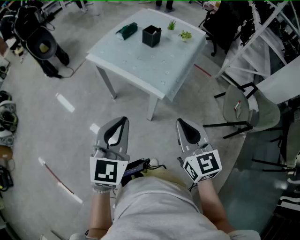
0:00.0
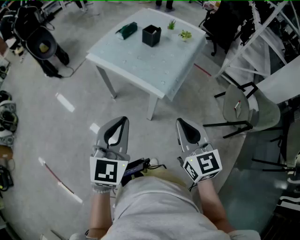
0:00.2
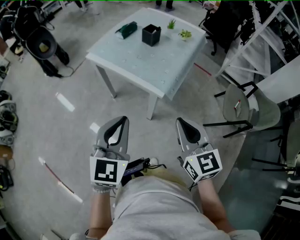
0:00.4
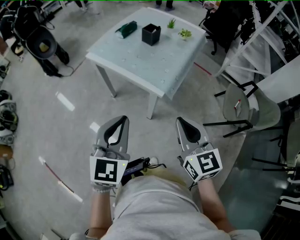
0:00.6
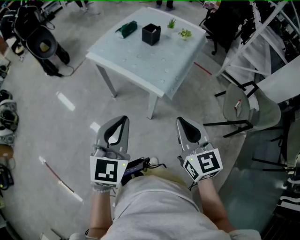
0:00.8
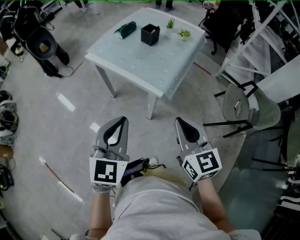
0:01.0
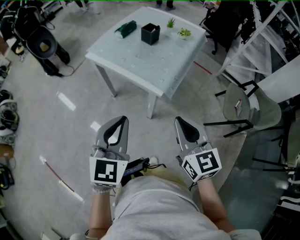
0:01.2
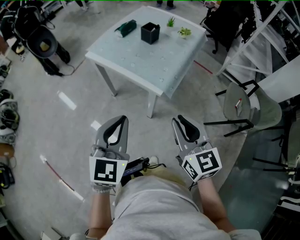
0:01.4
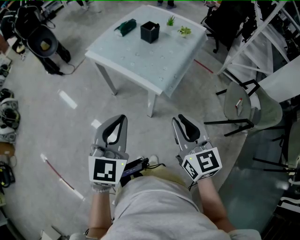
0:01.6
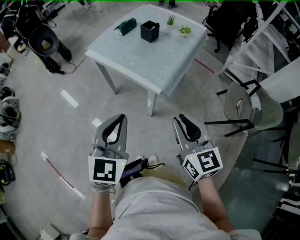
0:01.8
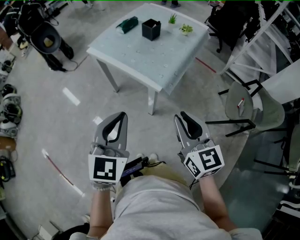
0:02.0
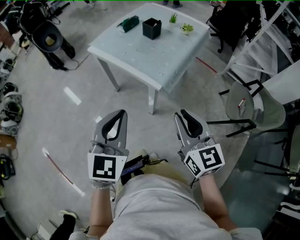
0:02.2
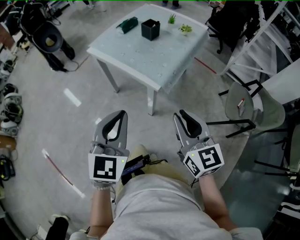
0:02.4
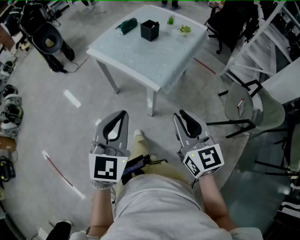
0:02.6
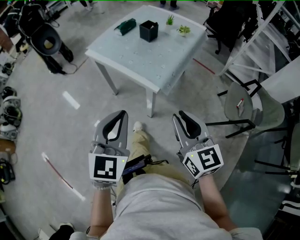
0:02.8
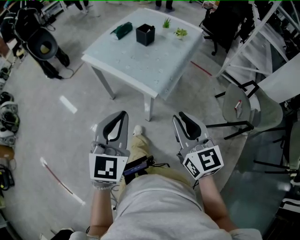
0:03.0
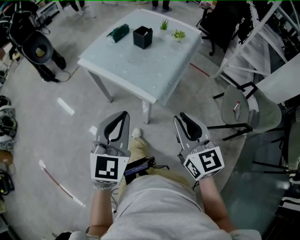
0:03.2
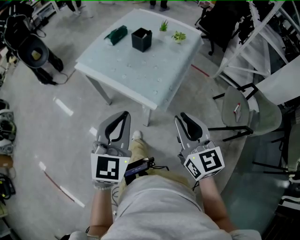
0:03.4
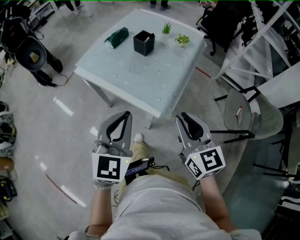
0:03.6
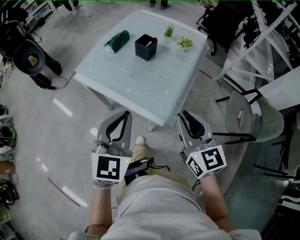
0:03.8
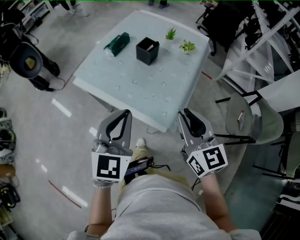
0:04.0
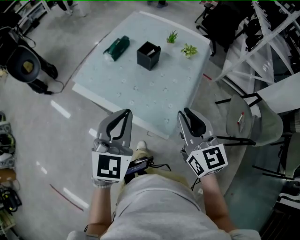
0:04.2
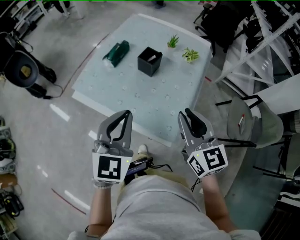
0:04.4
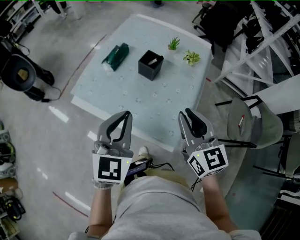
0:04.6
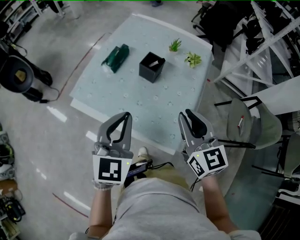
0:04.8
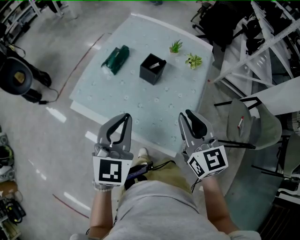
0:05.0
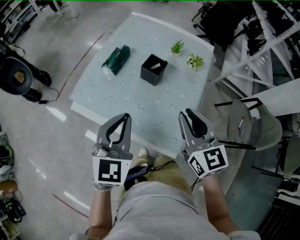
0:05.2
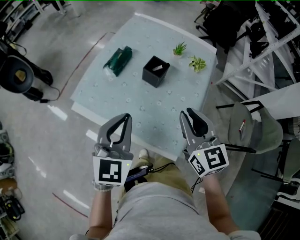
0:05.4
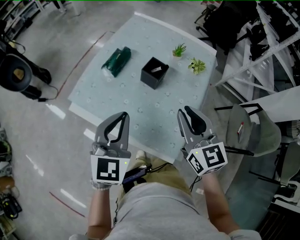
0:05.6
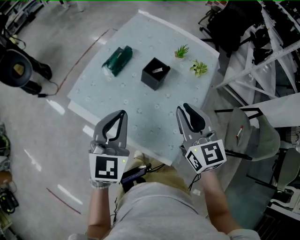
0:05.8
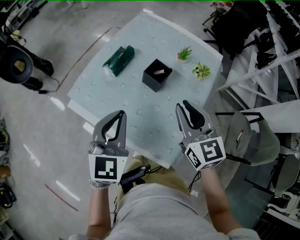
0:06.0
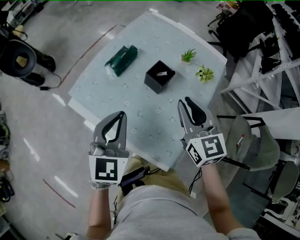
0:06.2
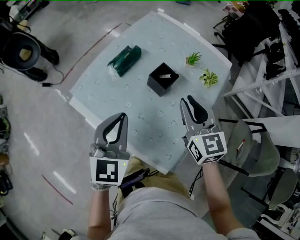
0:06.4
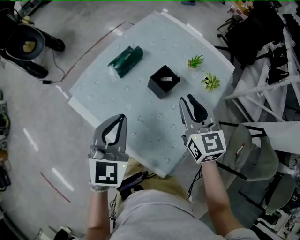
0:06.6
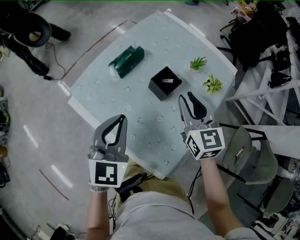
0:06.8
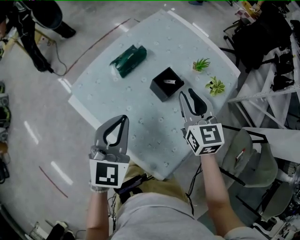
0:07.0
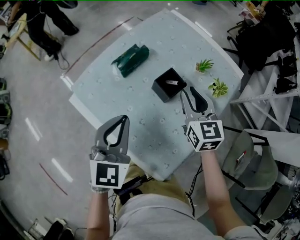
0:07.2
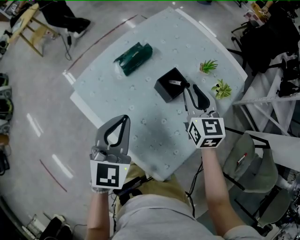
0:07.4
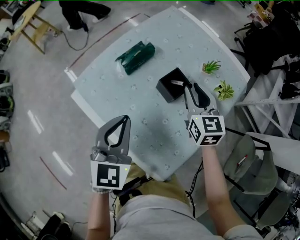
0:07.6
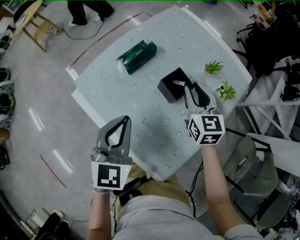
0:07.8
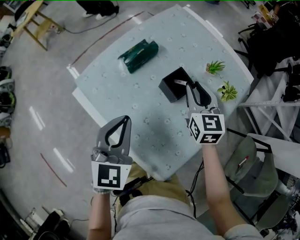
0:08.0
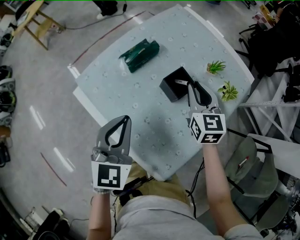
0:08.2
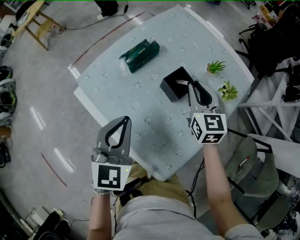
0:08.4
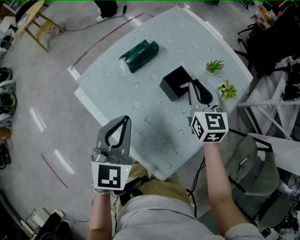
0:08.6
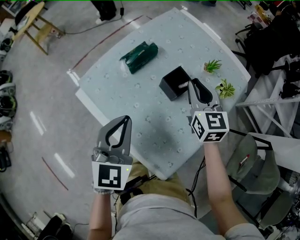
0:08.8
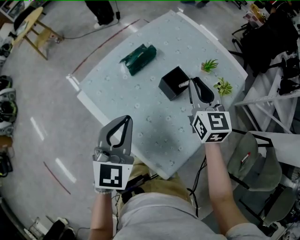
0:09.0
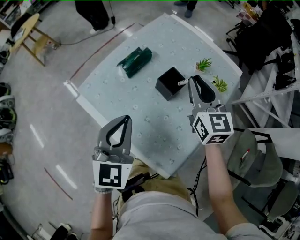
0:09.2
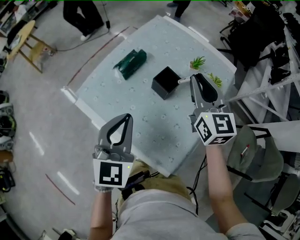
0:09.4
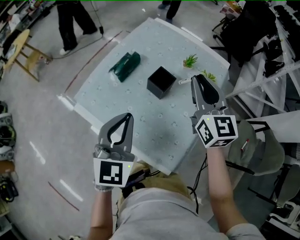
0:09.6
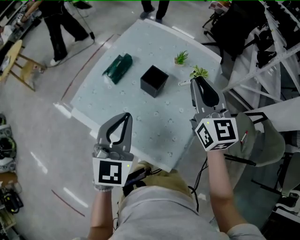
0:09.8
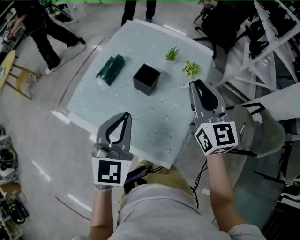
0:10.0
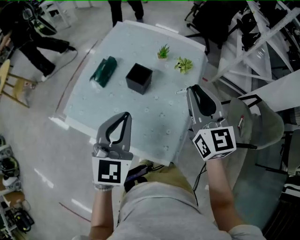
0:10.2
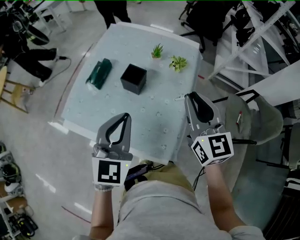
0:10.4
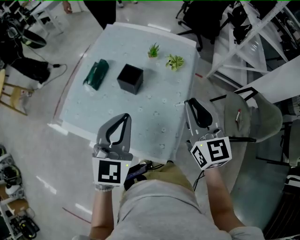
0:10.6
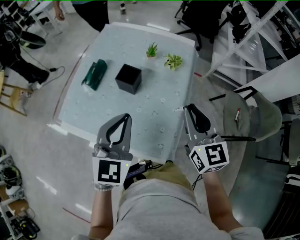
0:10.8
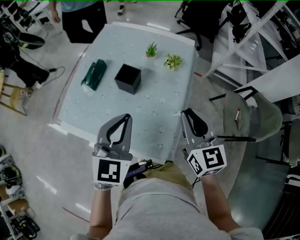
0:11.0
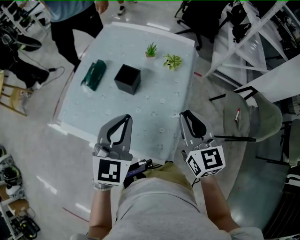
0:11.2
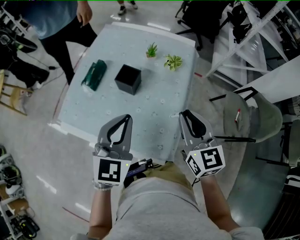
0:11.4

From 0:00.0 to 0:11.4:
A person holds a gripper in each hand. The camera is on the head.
From 0:00.0 to 0:02.8: The grippers make only small movements.
From 0:02.8 to 0:04.2: The grippers both shift forward by roughly 25 cm.
From 0:04.2 to 0:05.6: The grippers both shift forward by roughly 15 cm.
From 0:05.6 to 0:07.2: The right gripper heads forward and downward, covering about 20 cm; the left gripper travels forward by about 5 cm.
From 0:07.2 to 0:08.6: The grippers stay close to where they were, moving slightly.
From 0:08.6 to 0:10.0: The right gripper heads upward, backward and to the right, covering approximately 20 cm, and turns by approximately 20 degrees. Meanwhile the left gripper goes some 10 cm upward and to the right, and turns by approximately 20 degrees.
From 0:10.0 to 0:11.4: The right gripper goes roughly 10 cm backward and downward. Meanwhile the left gripper goes some 5 cm to the right.

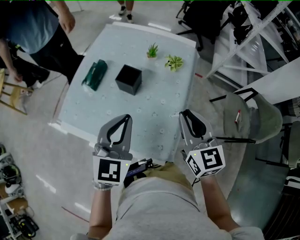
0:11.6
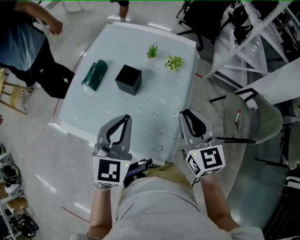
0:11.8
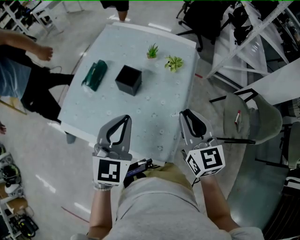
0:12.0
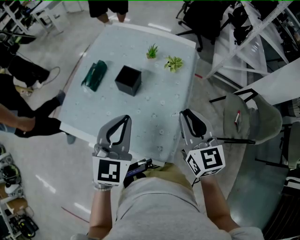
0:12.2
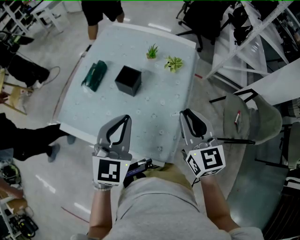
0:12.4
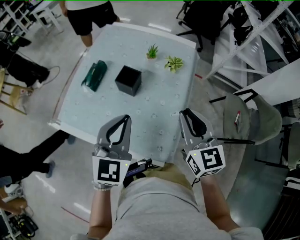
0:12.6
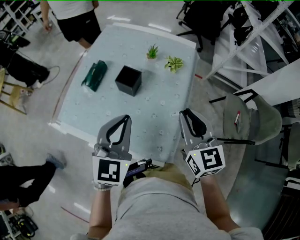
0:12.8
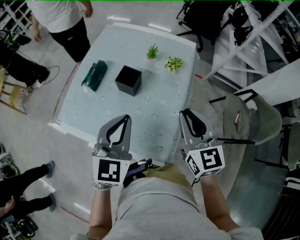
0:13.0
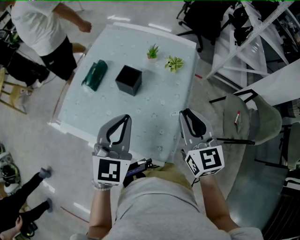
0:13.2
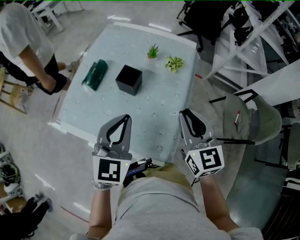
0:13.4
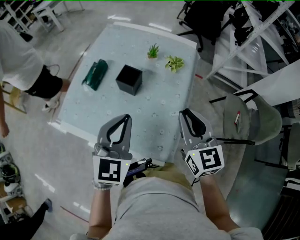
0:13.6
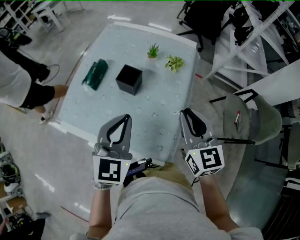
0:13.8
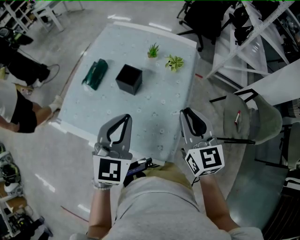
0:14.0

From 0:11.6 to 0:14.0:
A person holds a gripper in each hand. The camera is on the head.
From 0:11.6 to 0:14.0: Both grippers stay put.

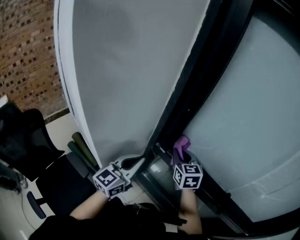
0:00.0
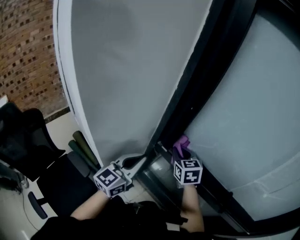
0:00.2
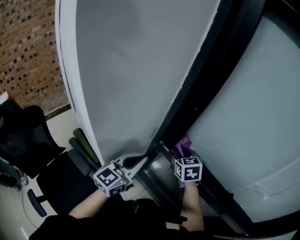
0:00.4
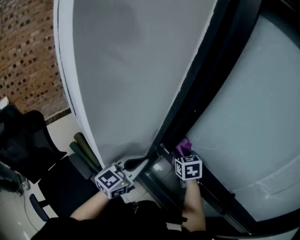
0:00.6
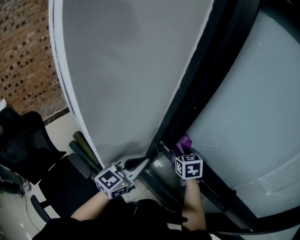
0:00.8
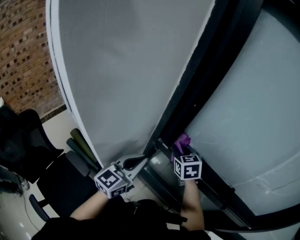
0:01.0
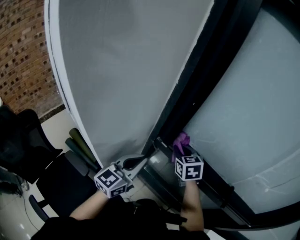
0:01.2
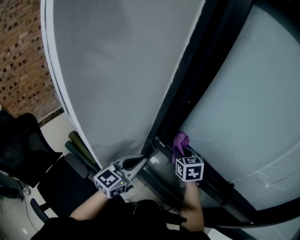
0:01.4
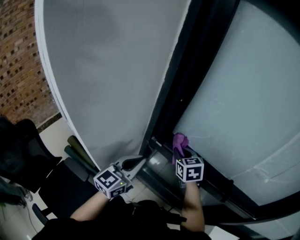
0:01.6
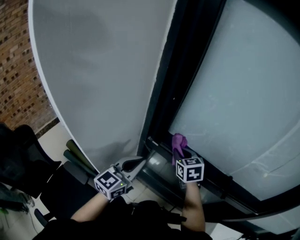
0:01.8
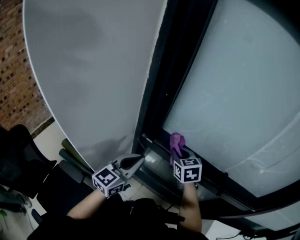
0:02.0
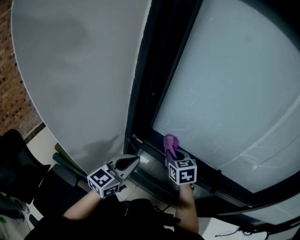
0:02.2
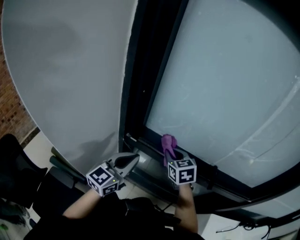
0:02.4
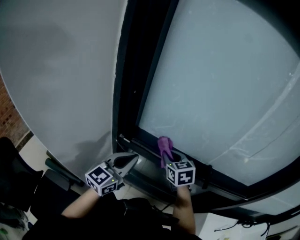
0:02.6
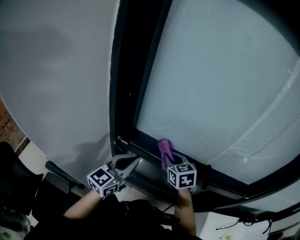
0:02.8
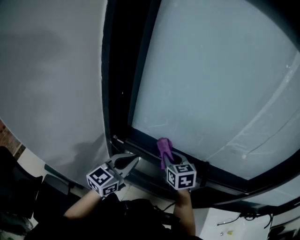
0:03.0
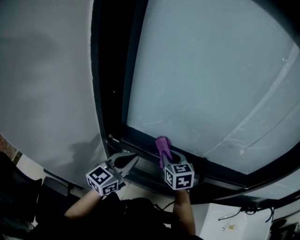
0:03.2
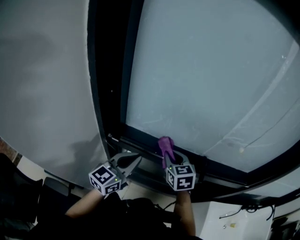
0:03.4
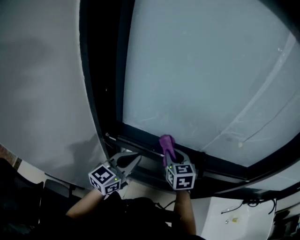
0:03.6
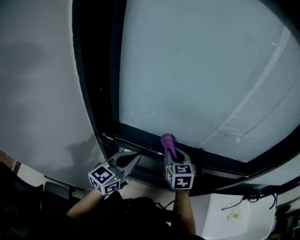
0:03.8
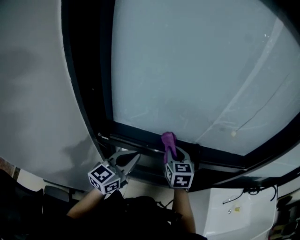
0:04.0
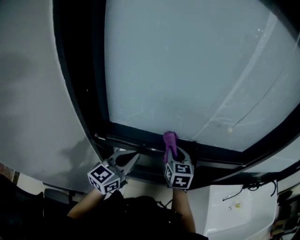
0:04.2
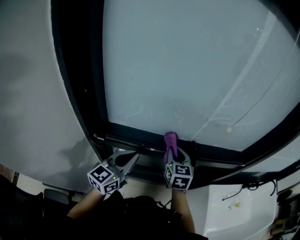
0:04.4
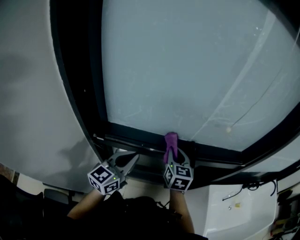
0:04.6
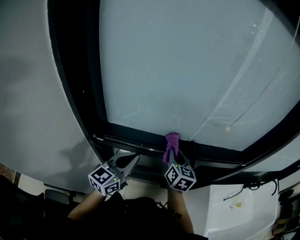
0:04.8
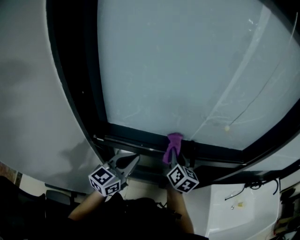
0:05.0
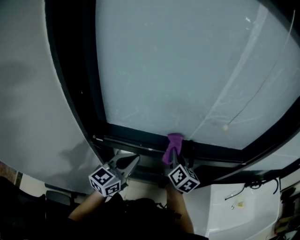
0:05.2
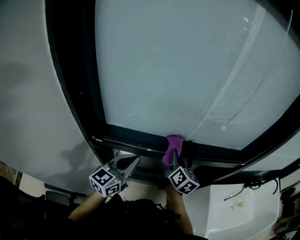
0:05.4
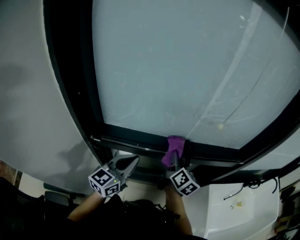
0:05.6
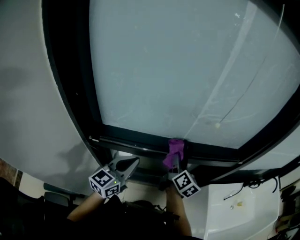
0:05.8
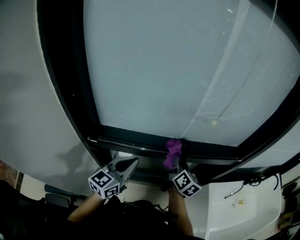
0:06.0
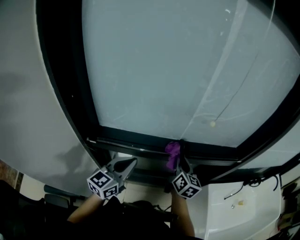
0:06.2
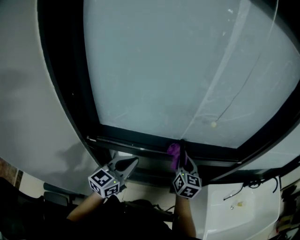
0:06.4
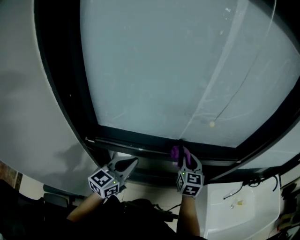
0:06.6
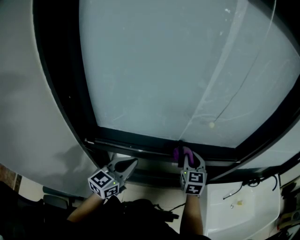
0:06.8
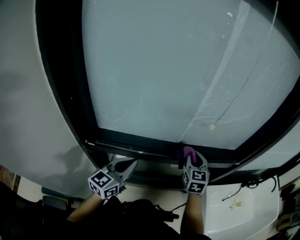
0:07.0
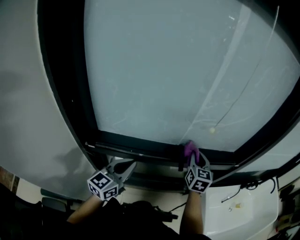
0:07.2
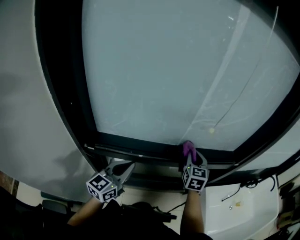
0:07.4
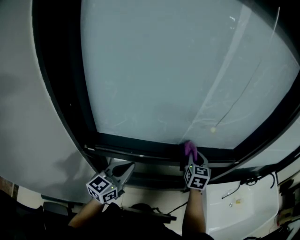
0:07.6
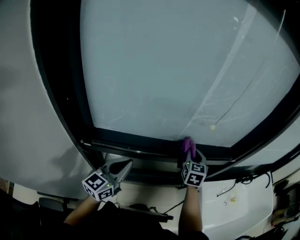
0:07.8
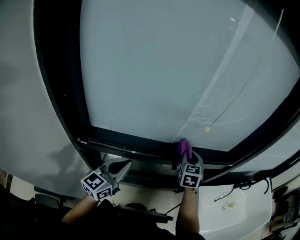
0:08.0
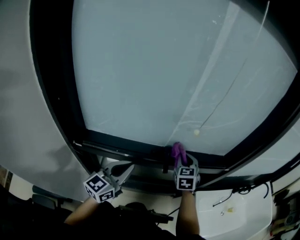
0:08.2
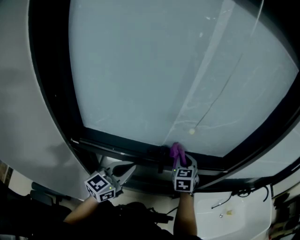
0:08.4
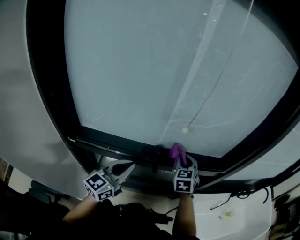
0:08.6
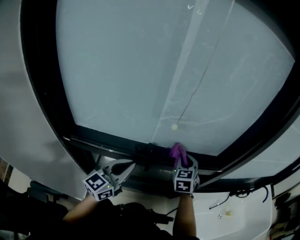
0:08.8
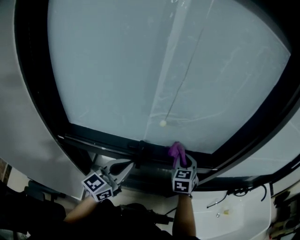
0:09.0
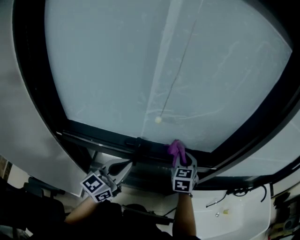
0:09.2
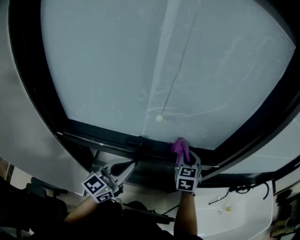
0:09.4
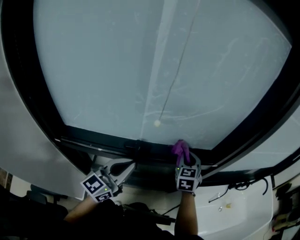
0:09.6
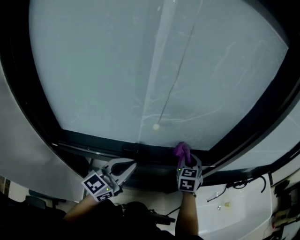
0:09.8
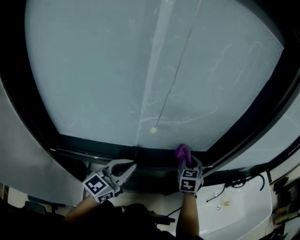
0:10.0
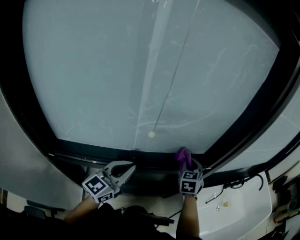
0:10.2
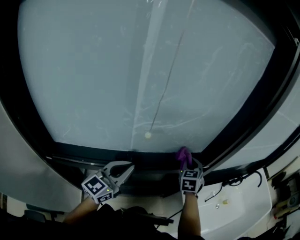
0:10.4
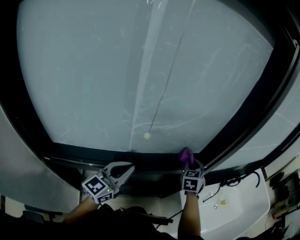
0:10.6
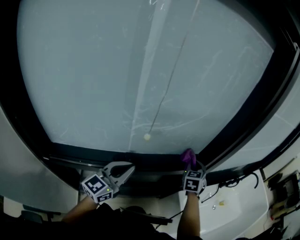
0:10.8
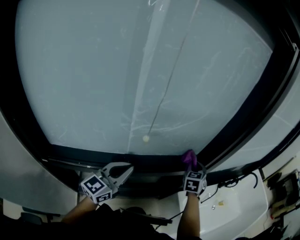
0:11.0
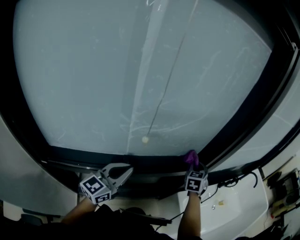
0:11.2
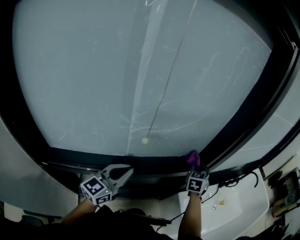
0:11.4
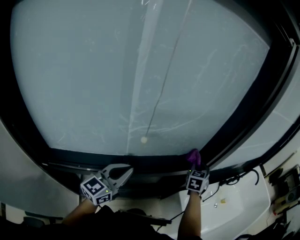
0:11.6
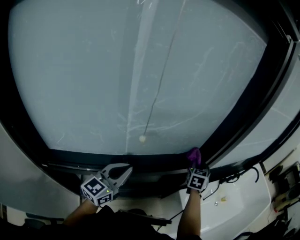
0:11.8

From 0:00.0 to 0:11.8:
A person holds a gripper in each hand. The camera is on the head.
From 0:00.0 to 0:01.4: There are only small adjustments of the grippers.
From 0:01.4 to 0:03.0: The two grippers go some 15 cm to the right.
From 0:03.0 to 0:04.4: The left gripper heads to the right, covering roughly 5 cm. The right gripper shifts roughly 10 cm to the right, and swivels about 30 degrees.
From 0:04.4 to 0:06.0: The right gripper is displaced to the right by roughly 10 cm, and twists approximately 40 degrees clockwise, seen from behind.
From 0:06.0 to 0:07.4: The right gripper goes approximately 5 cm forward, and twists about 40 degrees counterclockwise, seen from behind.
From 0:07.4 to 0:08.8: The left gripper heads to the right and forward, covering roughly 15 cm, while the right gripper moves to the right, about 10 cm.
From 0:08.8 to 0:10.4: The left gripper heads forward, covering approximately 5 cm. Meanwhile the right gripper moves to the right and forward, about 10 cm.
From 0:10.4 to 0:11.8: The right gripper goes approximately 10 cm to the right.
